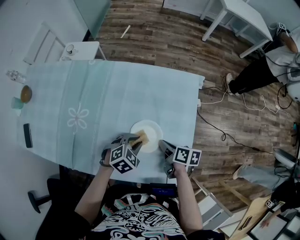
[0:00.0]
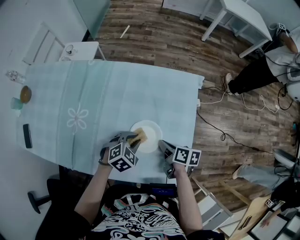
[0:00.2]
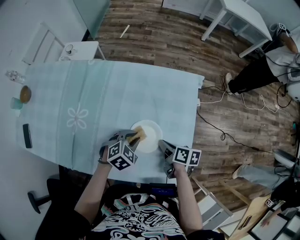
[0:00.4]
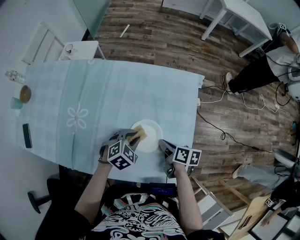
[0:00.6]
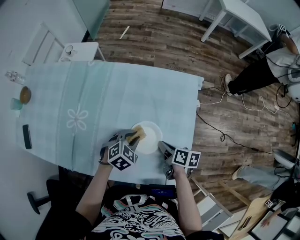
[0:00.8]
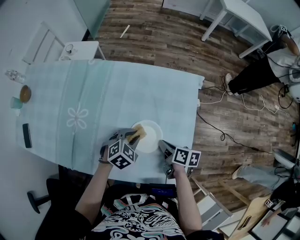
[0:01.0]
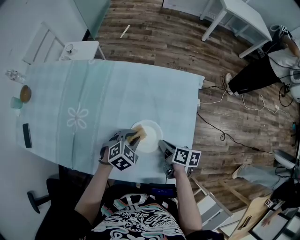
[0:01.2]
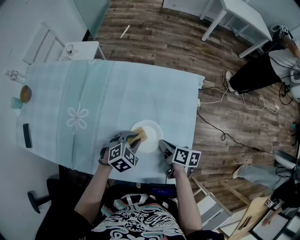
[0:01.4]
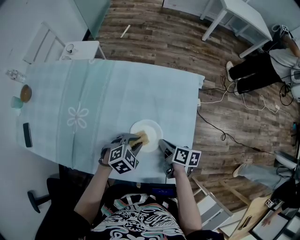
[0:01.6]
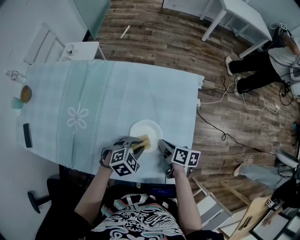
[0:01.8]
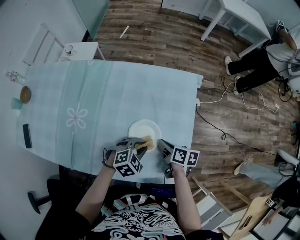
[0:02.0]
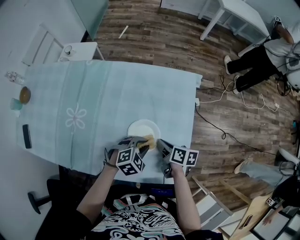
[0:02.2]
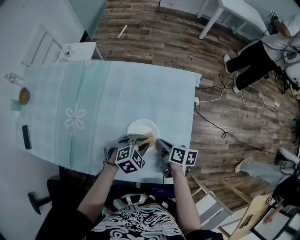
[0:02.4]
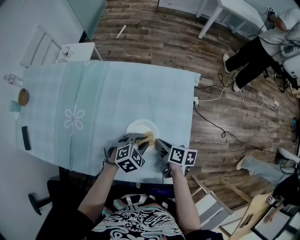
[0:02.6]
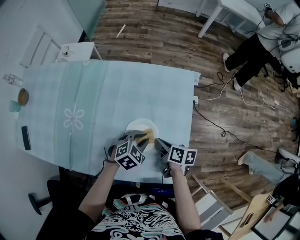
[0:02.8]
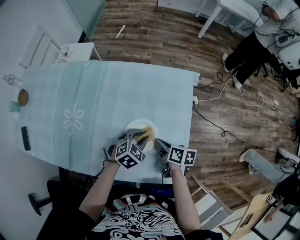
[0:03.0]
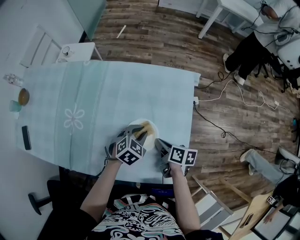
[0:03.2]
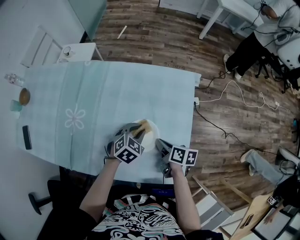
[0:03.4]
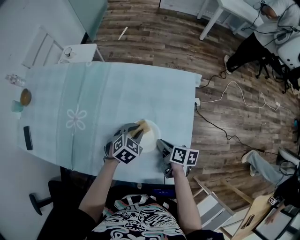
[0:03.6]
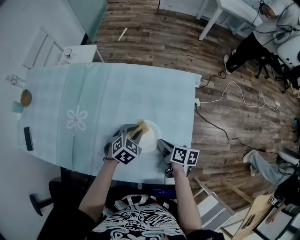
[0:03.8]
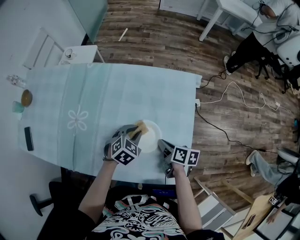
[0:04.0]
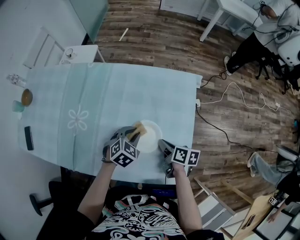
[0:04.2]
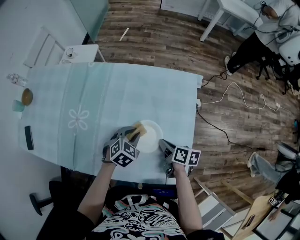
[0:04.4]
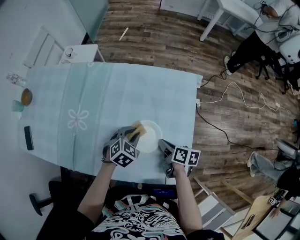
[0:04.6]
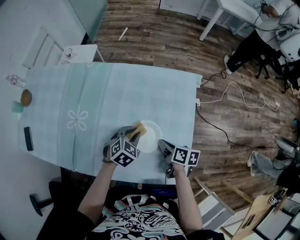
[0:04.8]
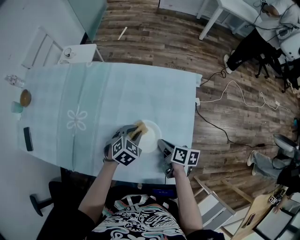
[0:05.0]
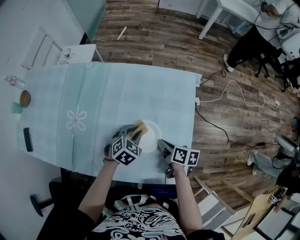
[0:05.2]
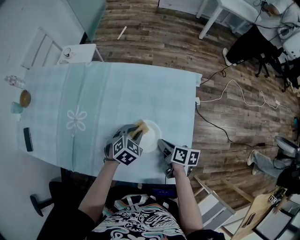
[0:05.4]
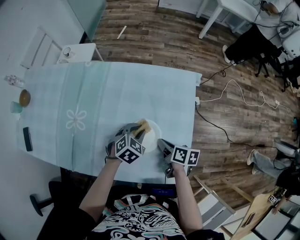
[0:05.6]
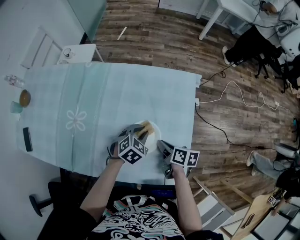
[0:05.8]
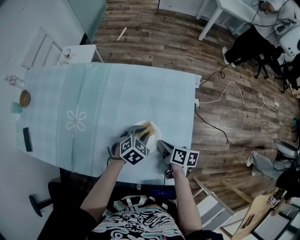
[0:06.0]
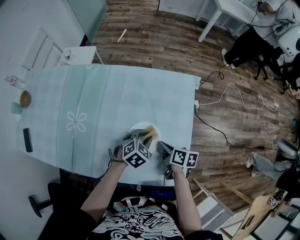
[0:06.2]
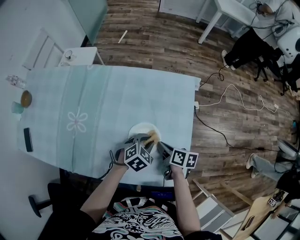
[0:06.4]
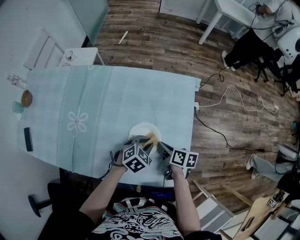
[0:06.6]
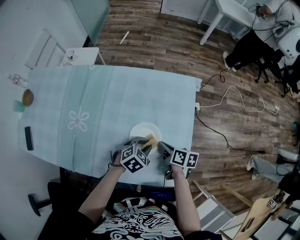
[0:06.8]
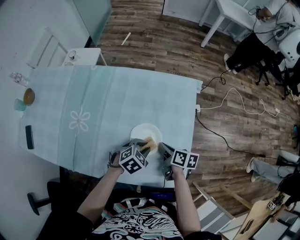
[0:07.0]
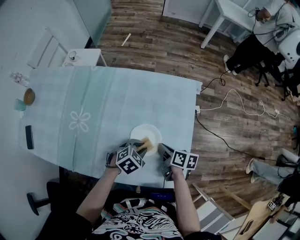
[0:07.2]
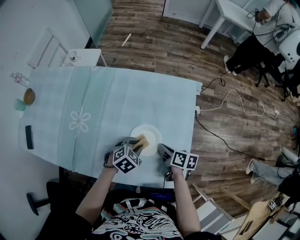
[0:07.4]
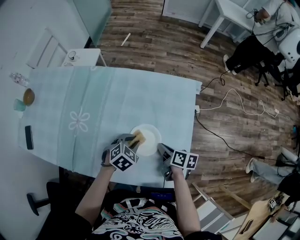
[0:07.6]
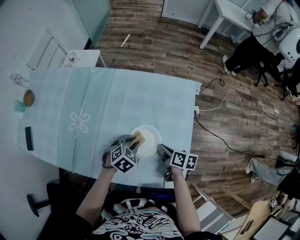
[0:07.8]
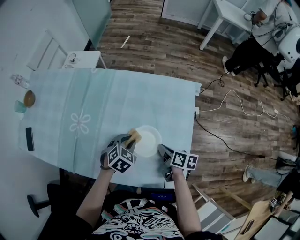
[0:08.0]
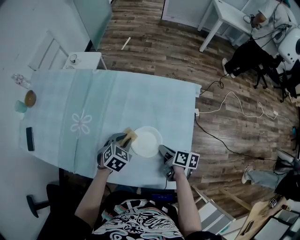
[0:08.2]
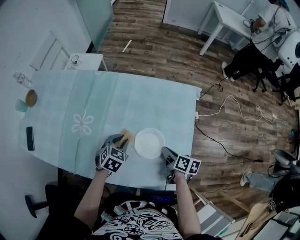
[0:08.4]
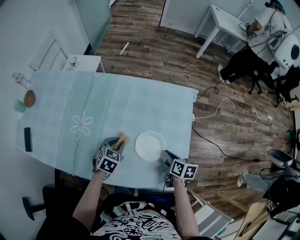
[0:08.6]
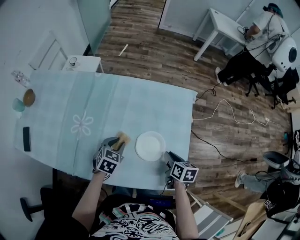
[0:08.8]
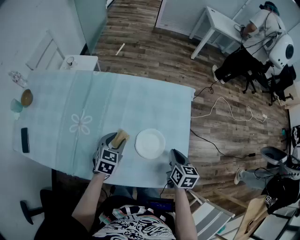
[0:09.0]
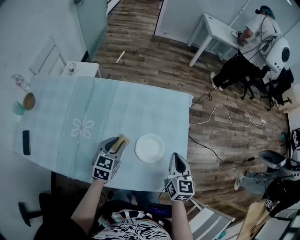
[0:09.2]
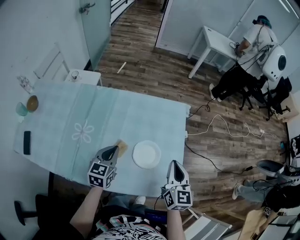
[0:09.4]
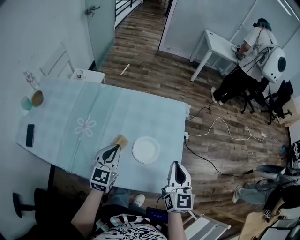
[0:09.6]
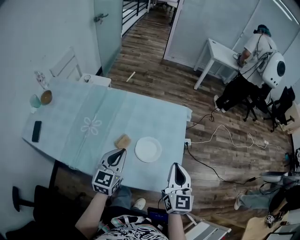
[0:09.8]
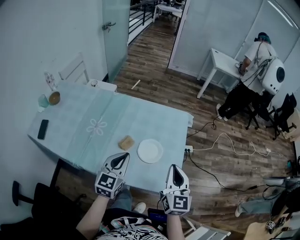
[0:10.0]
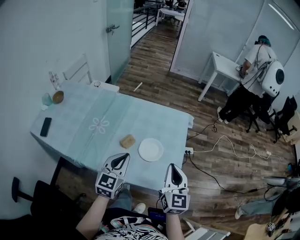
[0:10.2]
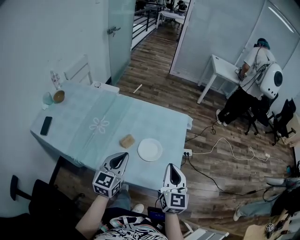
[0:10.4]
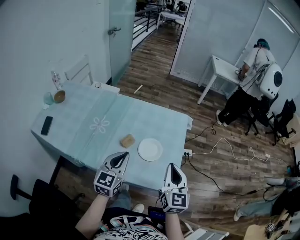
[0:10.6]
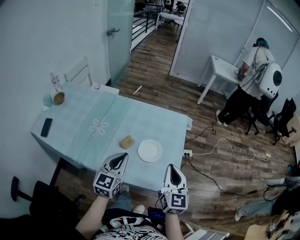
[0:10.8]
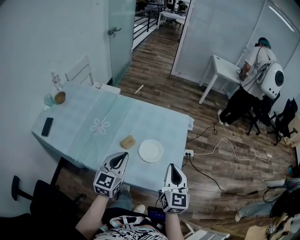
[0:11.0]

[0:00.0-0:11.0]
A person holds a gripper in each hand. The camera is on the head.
0:00.0 to 0:01.6: The grippers move only a little.
0:01.6 to 0:03.2: The left gripper heads forward, covering some 5 cm.
0:03.2 to 0:04.8: The grippers move only a little.
0:04.8 to 0:06.2: The left gripper travels to the right by some 5 cm.
0:06.2 to 0:07.8: The left gripper goes approximately 5 cm to the left.
0:07.8 to 0:09.4: The right gripper heads upward, covering approximately 20 cm, and swivels about 60 degrees. Meanwhile the left gripper is displaced upward and to the left by about 15 cm, tips its fingers upward by approximately 30 degrees, and closes.
0:09.4 to 0:11.0: The left gripper travels upward, backward and to the right by some 15 cm. Meanwhile the right gripper travels backward and upward by roughly 10 cm.

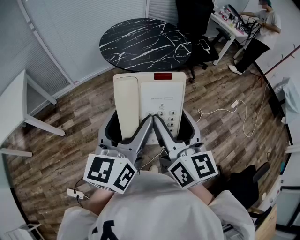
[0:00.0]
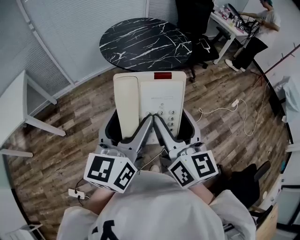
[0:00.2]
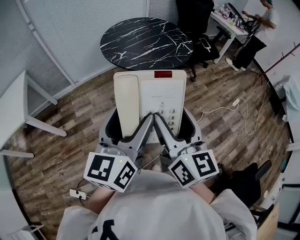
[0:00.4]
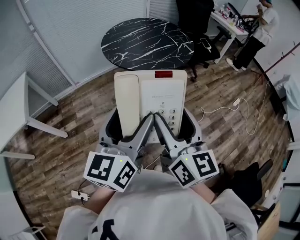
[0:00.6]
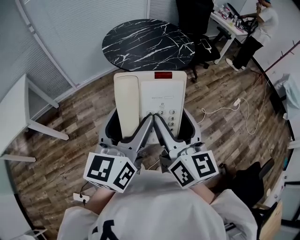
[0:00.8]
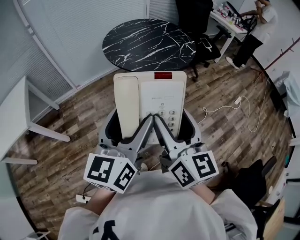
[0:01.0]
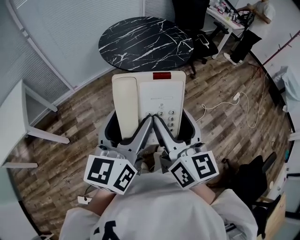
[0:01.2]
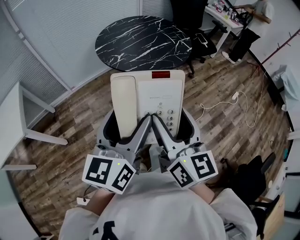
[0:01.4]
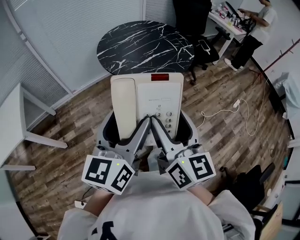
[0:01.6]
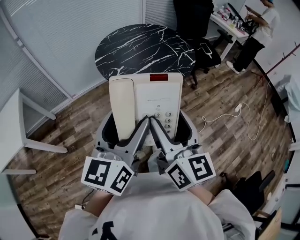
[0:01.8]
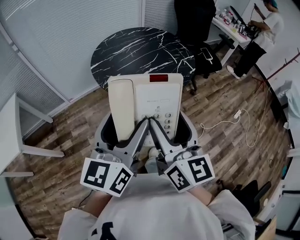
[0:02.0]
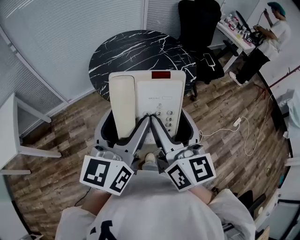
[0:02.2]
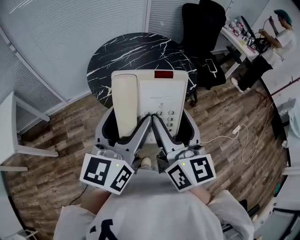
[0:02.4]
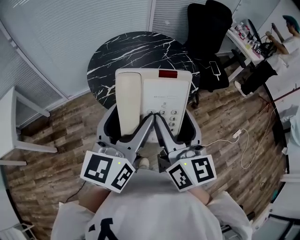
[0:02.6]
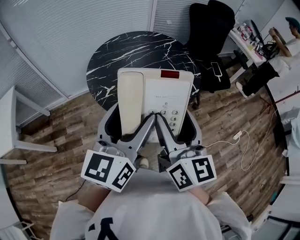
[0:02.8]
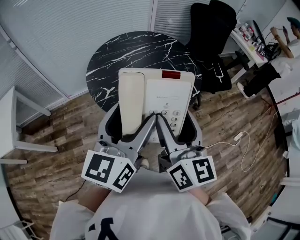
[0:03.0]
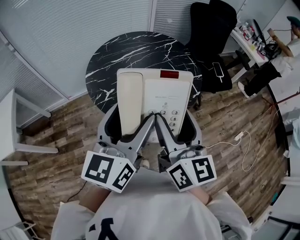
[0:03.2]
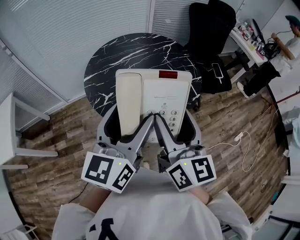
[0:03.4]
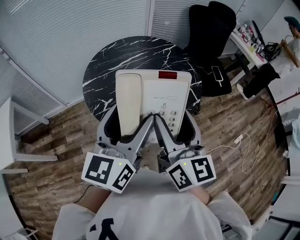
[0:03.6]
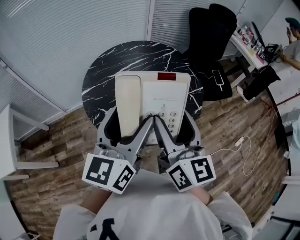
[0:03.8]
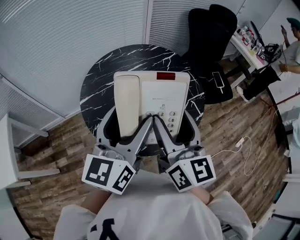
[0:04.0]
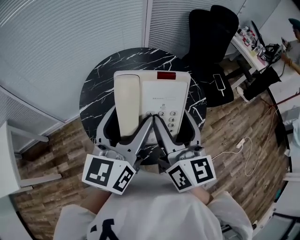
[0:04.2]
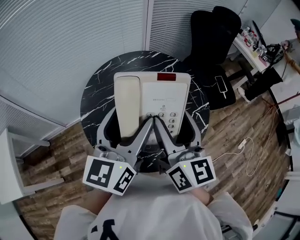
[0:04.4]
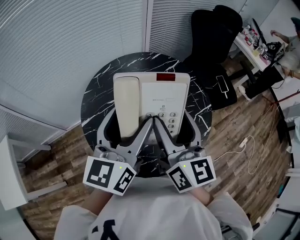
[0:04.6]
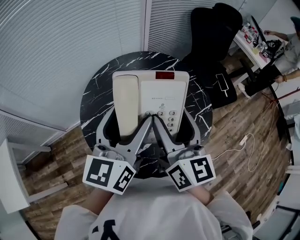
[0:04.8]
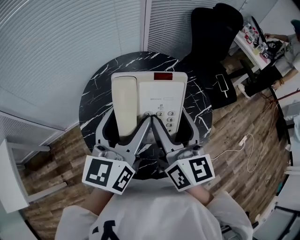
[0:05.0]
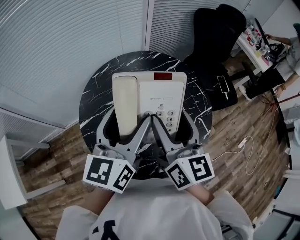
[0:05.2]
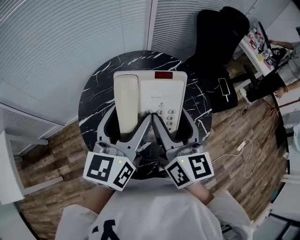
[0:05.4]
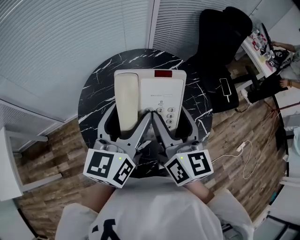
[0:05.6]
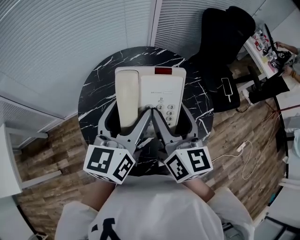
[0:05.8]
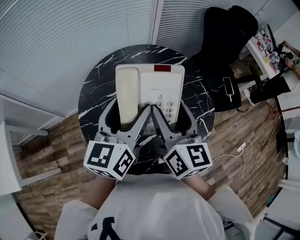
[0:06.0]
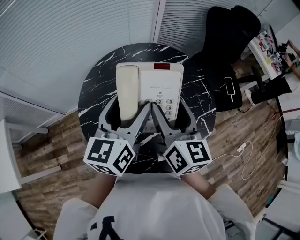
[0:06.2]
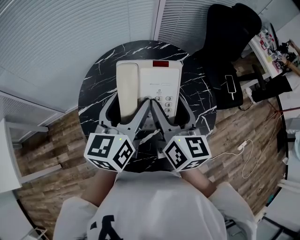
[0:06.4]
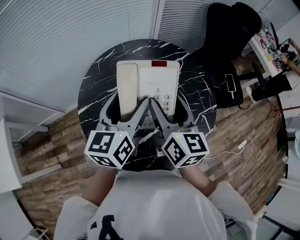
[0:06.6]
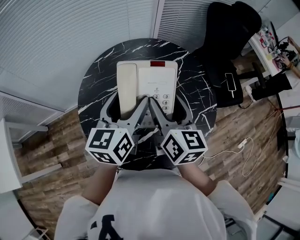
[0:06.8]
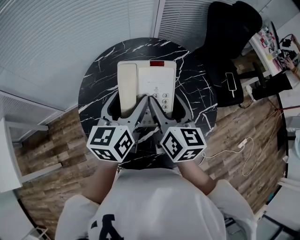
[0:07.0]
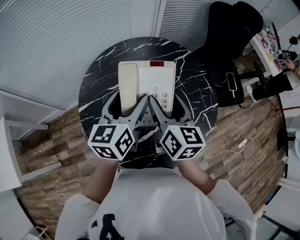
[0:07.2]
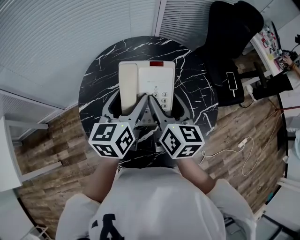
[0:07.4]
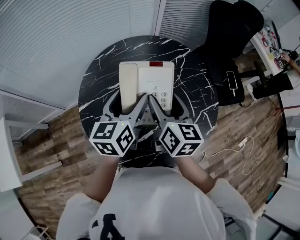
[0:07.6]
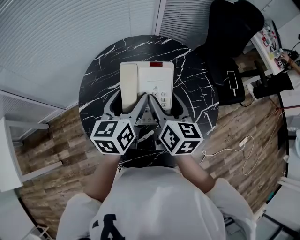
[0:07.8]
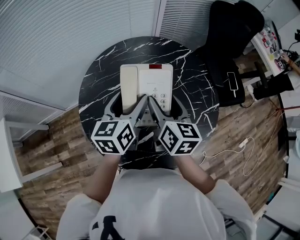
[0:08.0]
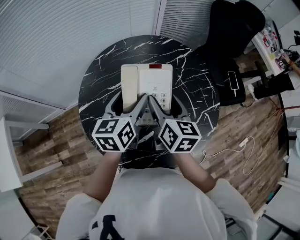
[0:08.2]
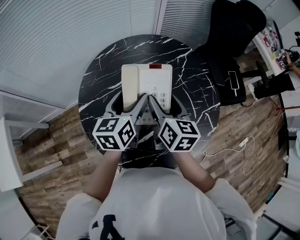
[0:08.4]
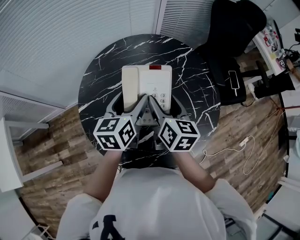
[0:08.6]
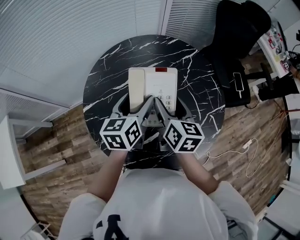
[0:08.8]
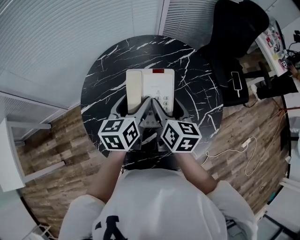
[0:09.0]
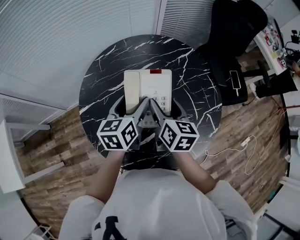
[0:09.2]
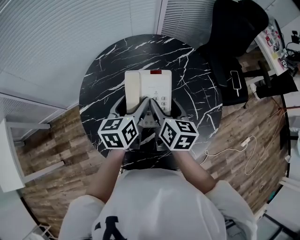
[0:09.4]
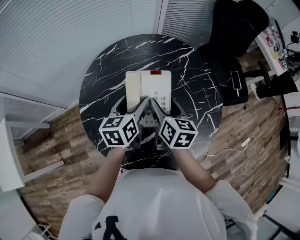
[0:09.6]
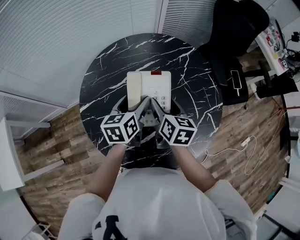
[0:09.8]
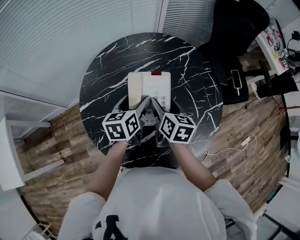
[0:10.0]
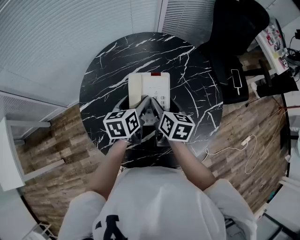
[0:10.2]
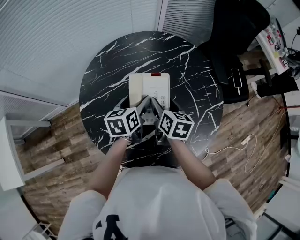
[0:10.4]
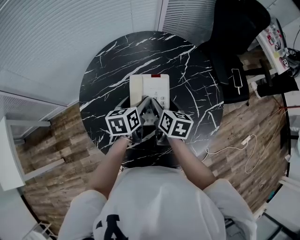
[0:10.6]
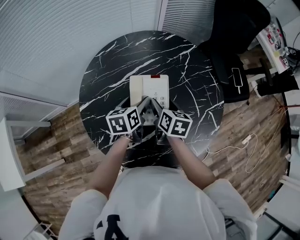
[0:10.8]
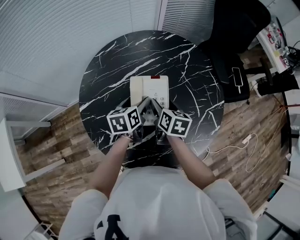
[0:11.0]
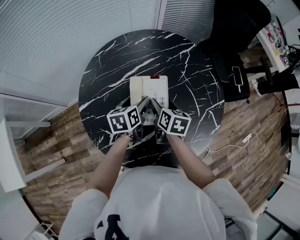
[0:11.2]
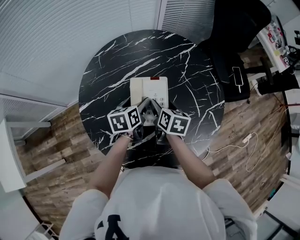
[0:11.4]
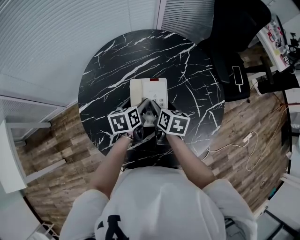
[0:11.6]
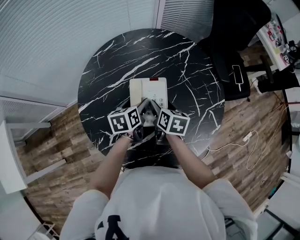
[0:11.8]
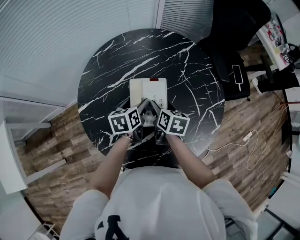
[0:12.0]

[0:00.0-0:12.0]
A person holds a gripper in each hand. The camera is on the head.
0:00.0 to 0:01.6: The grippers both shift forward by approximately 10 cm.
0:01.6 to 0:03.0: The grippers both shift forward by approximately 30 cm.
0:03.0 to 0:04.4: The two grippers go approximately 25 cm forward.
0:04.4 to 0:06.0: Both grippers move forward and downward, some 10 cm.
0:06.0 to 0:07.6: The grippers both shift downward by about 10 cm.
0:07.6 to 0:09.0: Both grippers travel together downward, roughly 5 cm.
0:09.0 to 0:10.4: Both grippers move downward, some 10 cm.
0:10.4 to 0:12.0: The grippers both shift downward by about 5 cm.

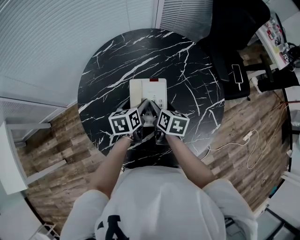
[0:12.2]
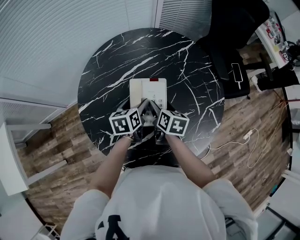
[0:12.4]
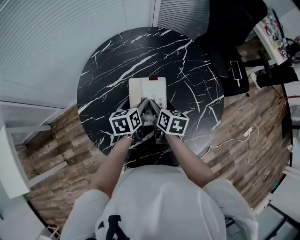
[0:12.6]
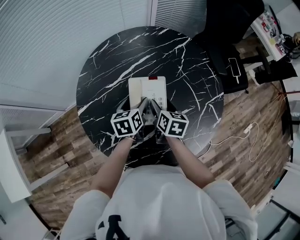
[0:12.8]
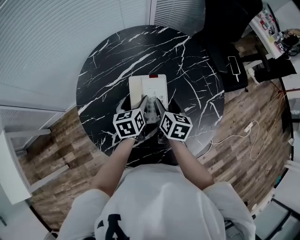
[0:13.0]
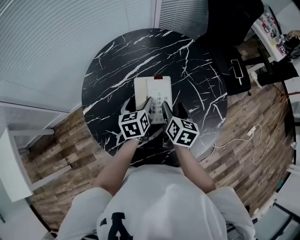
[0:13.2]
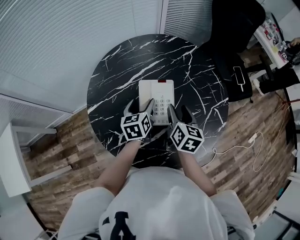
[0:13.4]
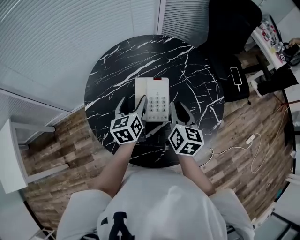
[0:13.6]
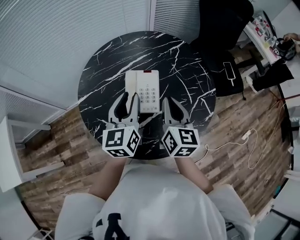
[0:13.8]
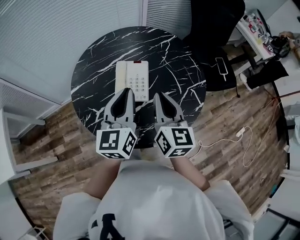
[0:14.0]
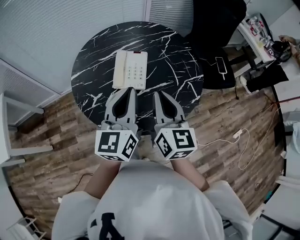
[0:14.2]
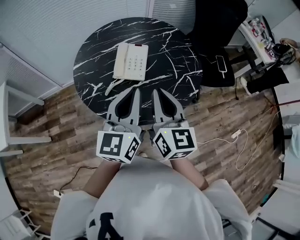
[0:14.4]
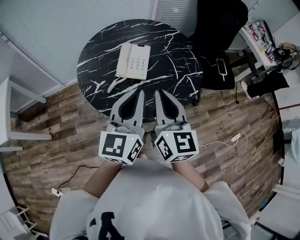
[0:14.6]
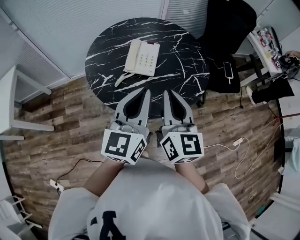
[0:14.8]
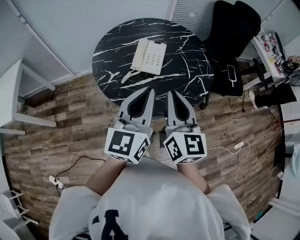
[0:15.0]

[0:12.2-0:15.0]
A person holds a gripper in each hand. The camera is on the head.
0:12.2 to 0:13.6: The two grippers go some 10 cm upward. The left gripper rotates approximately 20 degrees. The right gripper changes its angle by about 30 degrees, and closes its fingers.
0:13.6 to 0:15.0: The grippers both shift backward and upward by roughly 35 cm. The right gripper swivels approximately 30 degrees; the left gripper swivels some 30 degrees, and closes up.